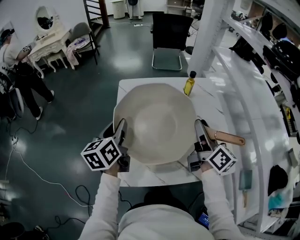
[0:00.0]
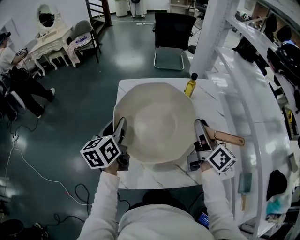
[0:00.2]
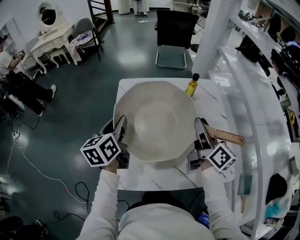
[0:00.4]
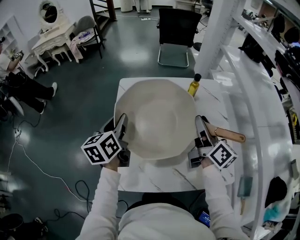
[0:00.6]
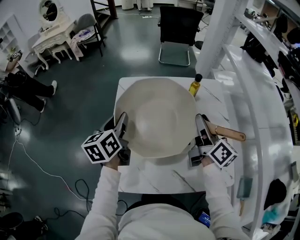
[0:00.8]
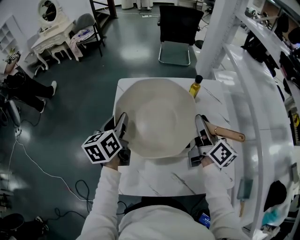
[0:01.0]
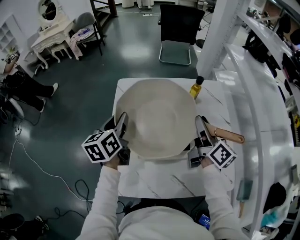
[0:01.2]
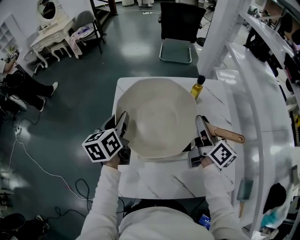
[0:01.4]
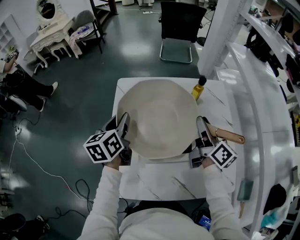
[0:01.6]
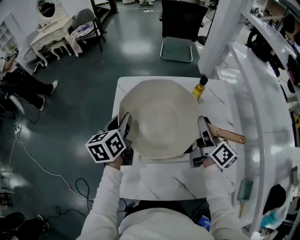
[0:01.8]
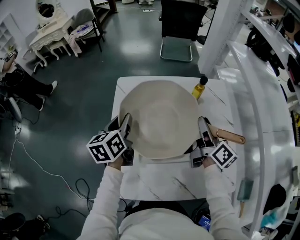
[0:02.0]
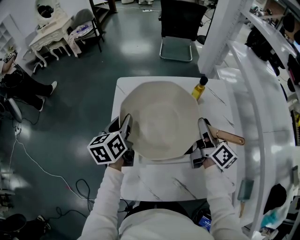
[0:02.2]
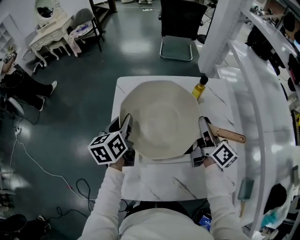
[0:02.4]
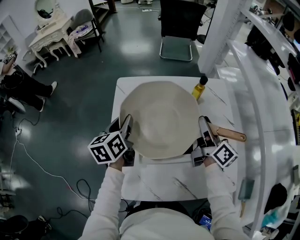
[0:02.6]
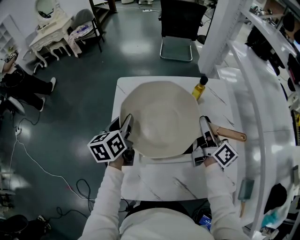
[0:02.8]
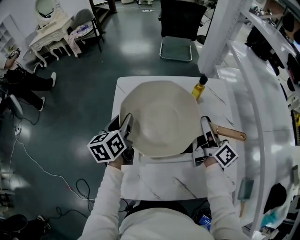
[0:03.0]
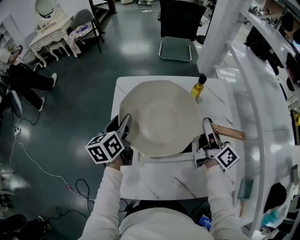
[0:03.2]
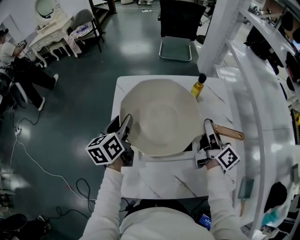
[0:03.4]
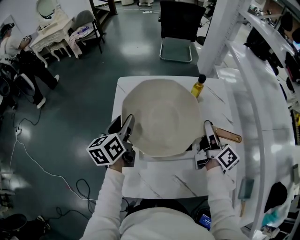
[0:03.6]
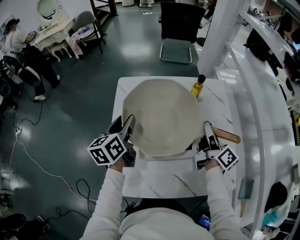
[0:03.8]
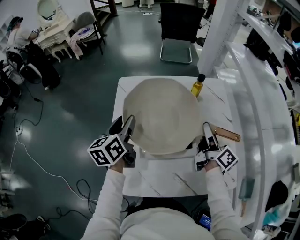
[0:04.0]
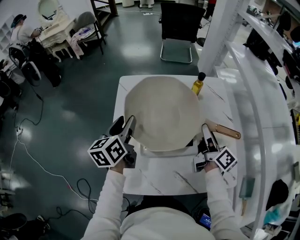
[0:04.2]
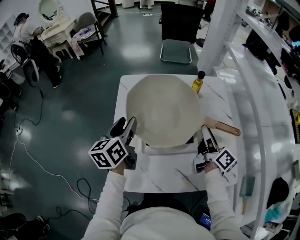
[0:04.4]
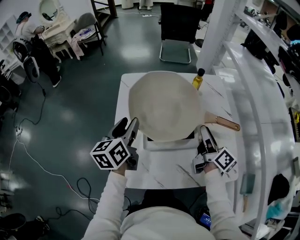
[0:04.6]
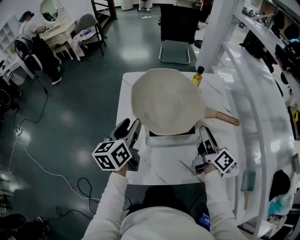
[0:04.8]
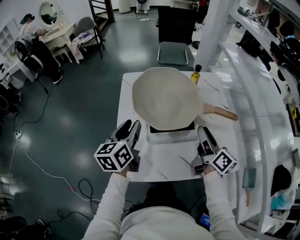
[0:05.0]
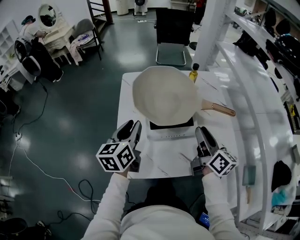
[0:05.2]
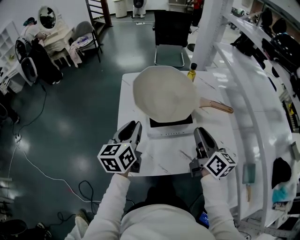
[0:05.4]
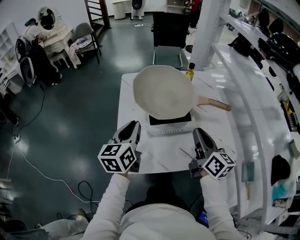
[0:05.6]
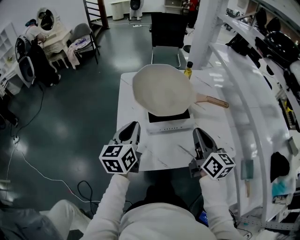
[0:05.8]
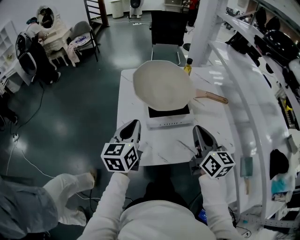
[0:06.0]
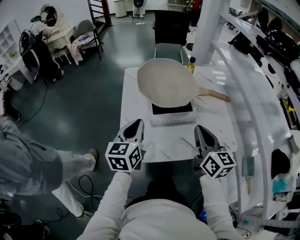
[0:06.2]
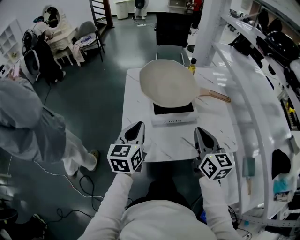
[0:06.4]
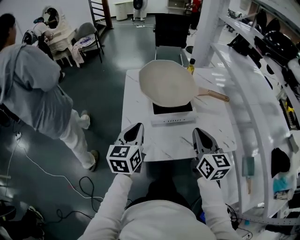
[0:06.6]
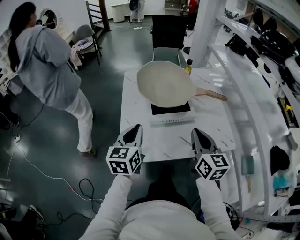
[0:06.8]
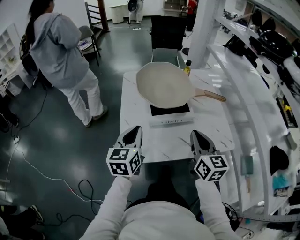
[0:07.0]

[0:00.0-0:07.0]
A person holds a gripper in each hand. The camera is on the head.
0:00.0 to 0:01.4: Both grippers travel together forward, roughly 10 cm.
0:01.4 to 0:02.8: There are only small adjustments of the grippers.
0:02.8 to 0:04.2: The right gripper moves backward, some 5 cm, while the left gripper changes place by some 5 cm.
0:04.2 to 0:05.6: The grippers both shift backward by roughly 15 cm. The right gripper swivels about 30 degrees, and closes. The left gripper closes its fingers.
0:05.6 to 0:07.0: Both grippers move backward, roughly 10 cm. The right gripper turns by about 20 degrees.

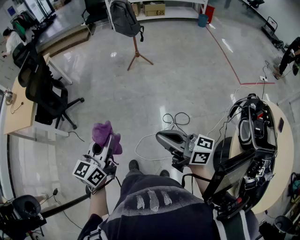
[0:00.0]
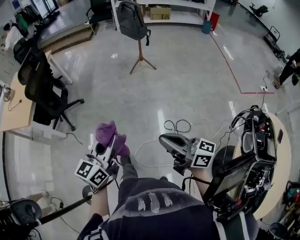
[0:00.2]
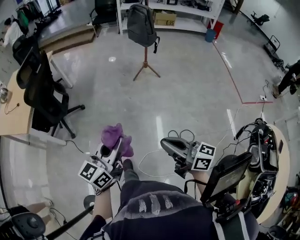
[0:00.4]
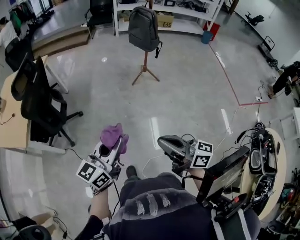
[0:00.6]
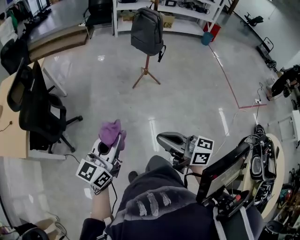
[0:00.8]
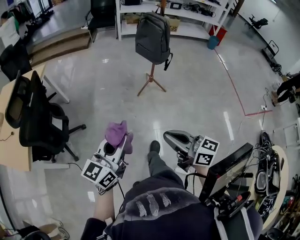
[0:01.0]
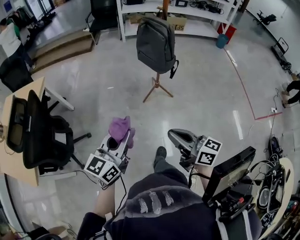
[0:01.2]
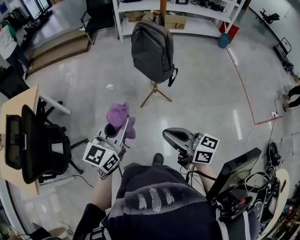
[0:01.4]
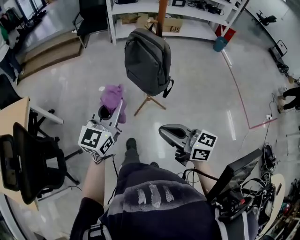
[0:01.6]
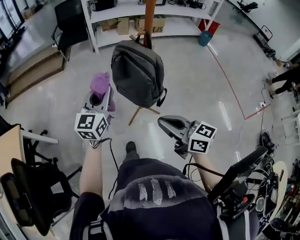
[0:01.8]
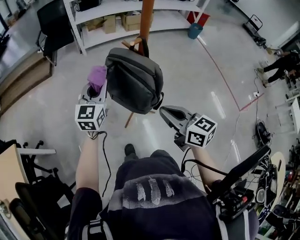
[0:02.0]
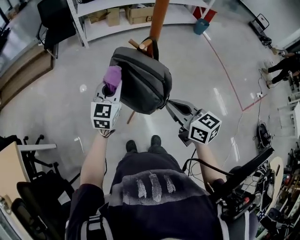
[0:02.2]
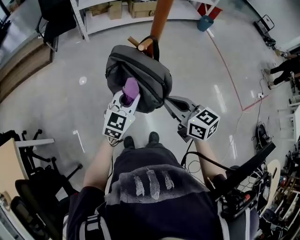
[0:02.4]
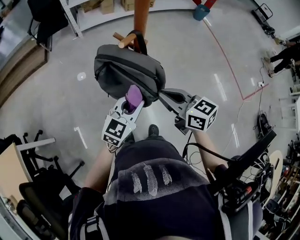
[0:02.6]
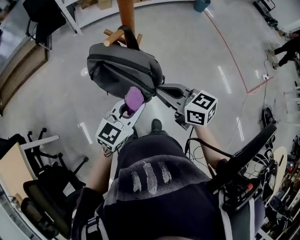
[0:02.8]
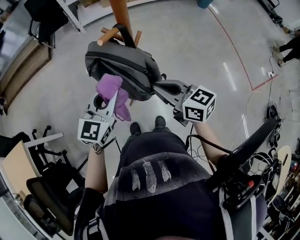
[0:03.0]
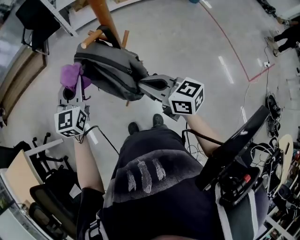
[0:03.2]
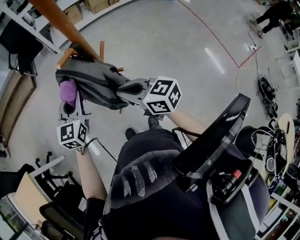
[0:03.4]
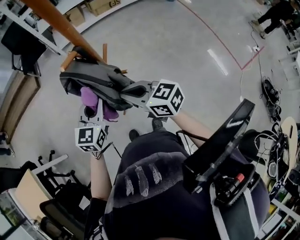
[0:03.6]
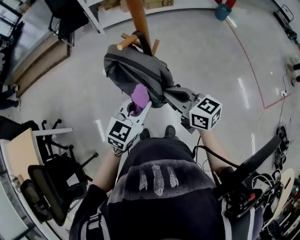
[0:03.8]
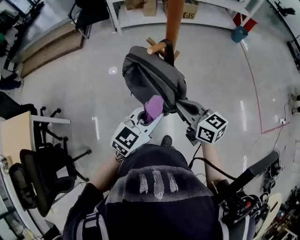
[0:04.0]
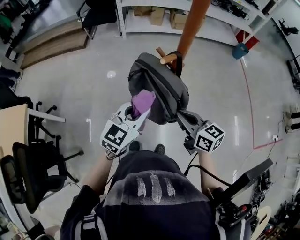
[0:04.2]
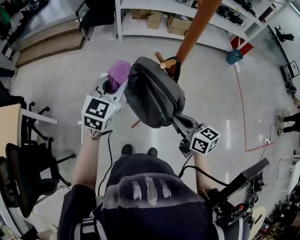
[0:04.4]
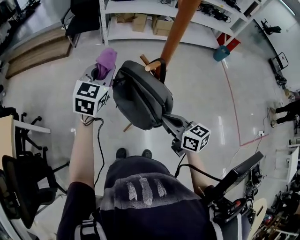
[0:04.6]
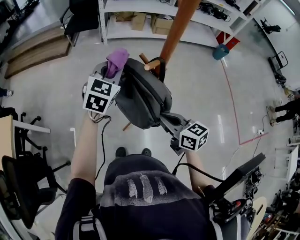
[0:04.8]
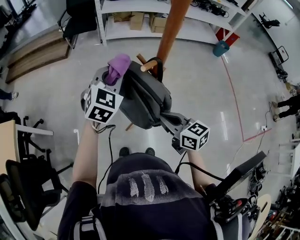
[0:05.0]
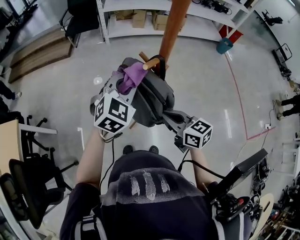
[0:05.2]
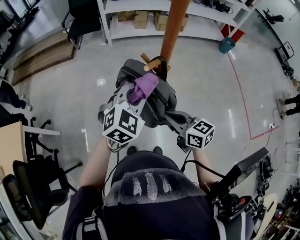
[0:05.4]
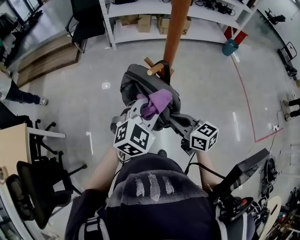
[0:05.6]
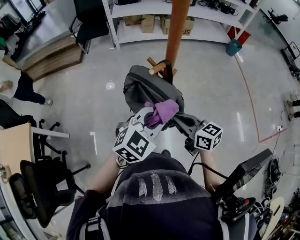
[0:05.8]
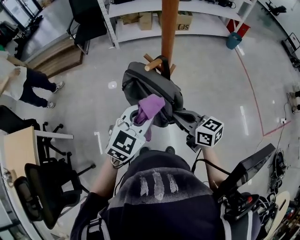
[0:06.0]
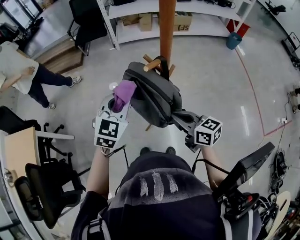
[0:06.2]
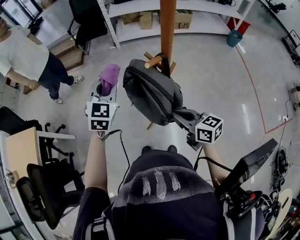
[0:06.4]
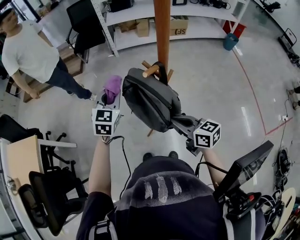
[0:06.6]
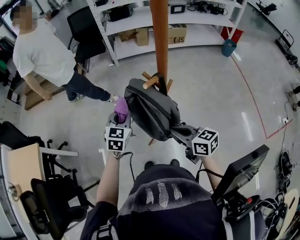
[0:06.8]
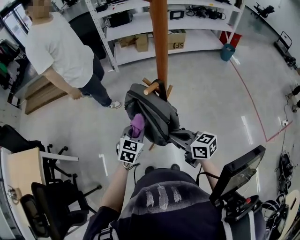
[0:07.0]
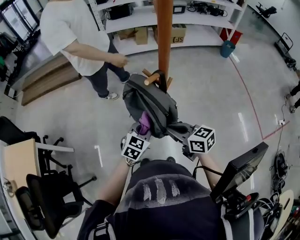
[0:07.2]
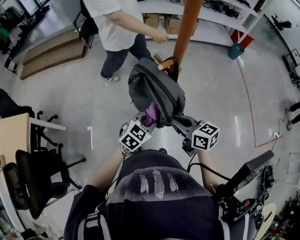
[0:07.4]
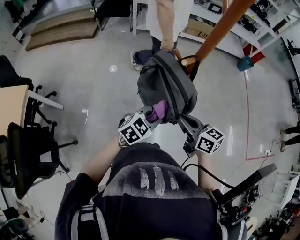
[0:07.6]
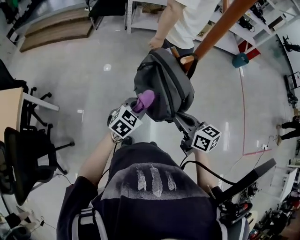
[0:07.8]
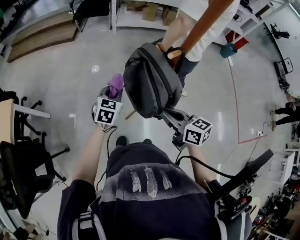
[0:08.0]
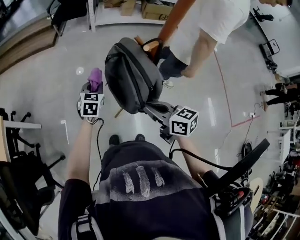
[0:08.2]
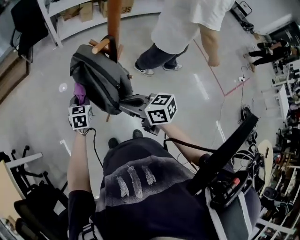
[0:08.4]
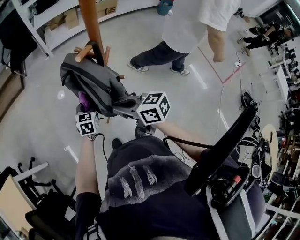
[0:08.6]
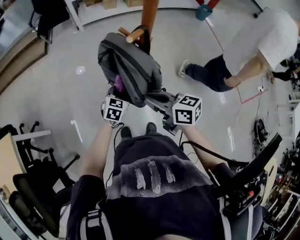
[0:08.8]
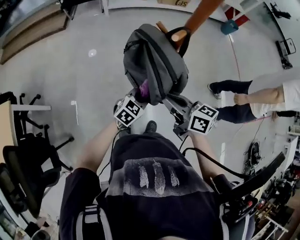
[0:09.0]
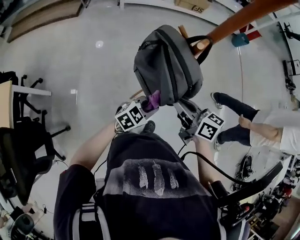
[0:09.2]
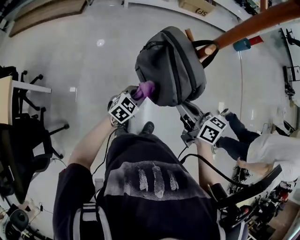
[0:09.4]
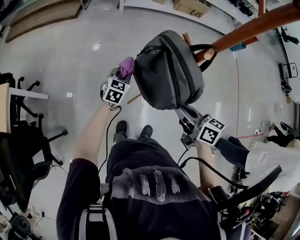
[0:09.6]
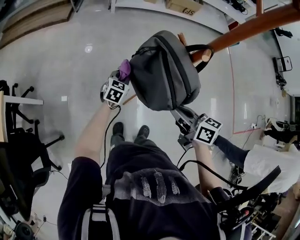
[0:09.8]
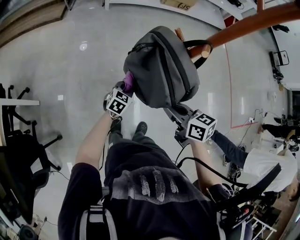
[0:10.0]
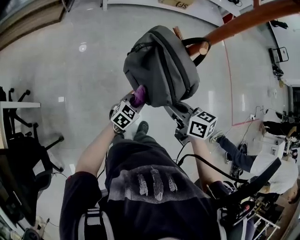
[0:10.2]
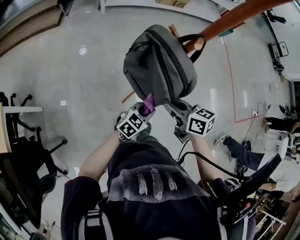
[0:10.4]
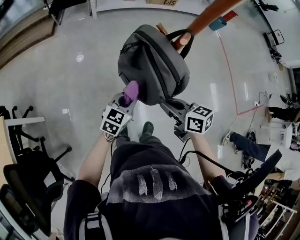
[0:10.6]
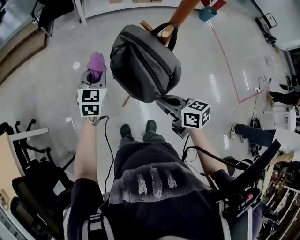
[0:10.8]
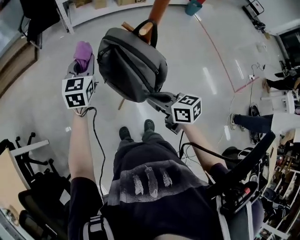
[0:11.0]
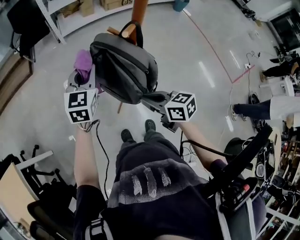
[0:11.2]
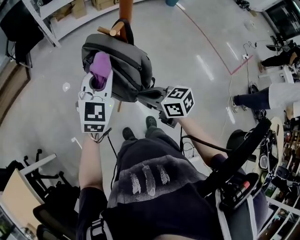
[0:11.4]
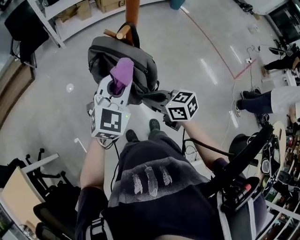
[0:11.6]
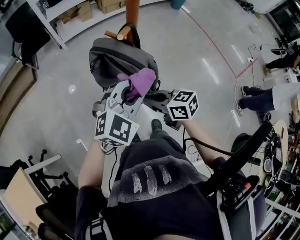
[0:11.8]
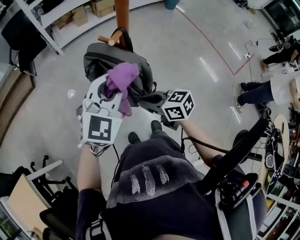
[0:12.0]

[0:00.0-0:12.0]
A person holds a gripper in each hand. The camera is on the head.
0:00.0 to 0:01.6: The pair of grippers is taken forward, some 90 cm. The left gripper rotates roughly 20 degrees.
0:01.6 to 0:03.0: The left gripper ends up roughly 25 cm from where it was. The right gripper changes place by roughly 30 cm.
0:03.0 to 0:04.4: The left gripper swings forward and backward, some 15 cm each way, with 2 reversals.
0:04.4 to 0:06.0: The left gripper moves backward and to the right, approximately 15 cm, and swivels about 20 degrees.
0:06.0 to 0:07.6: The left gripper goes approximately 15 cm downward, and goes forward and returns, approximately 15 cm each way.
0:07.6 to 0:09.0: The left gripper is displaced downward by some 10 cm, and goes forward and returns, about 15 cm each way.
0:09.0 to 0:10.4: The left gripper goes forward and backward, about 20 cm each way, reversing 2 times.
0:10.4 to 0:12.0: The left gripper moves upward, approximately 30 cm, and turns by roughly 40 degrees.

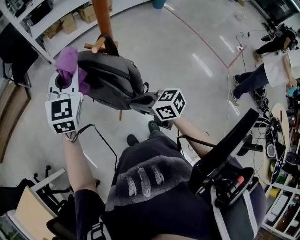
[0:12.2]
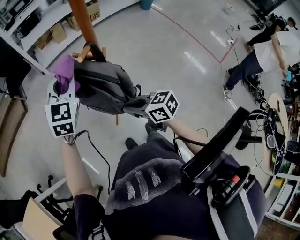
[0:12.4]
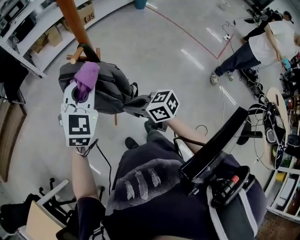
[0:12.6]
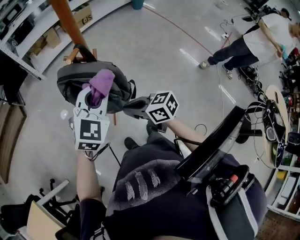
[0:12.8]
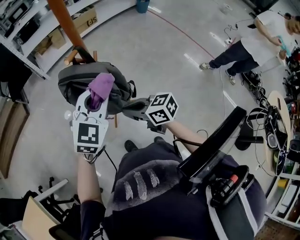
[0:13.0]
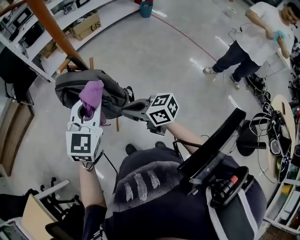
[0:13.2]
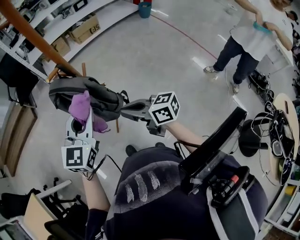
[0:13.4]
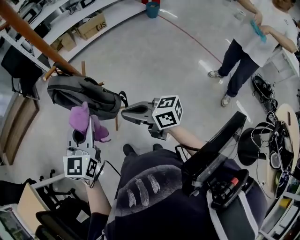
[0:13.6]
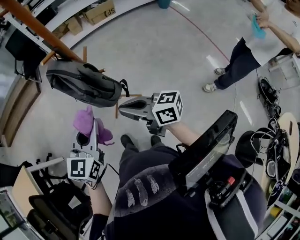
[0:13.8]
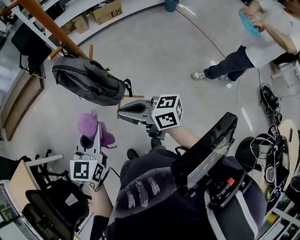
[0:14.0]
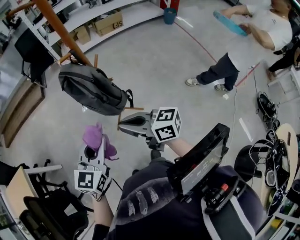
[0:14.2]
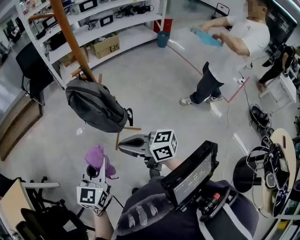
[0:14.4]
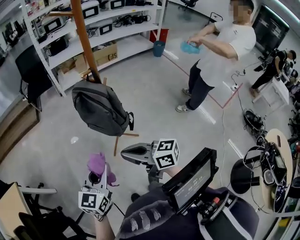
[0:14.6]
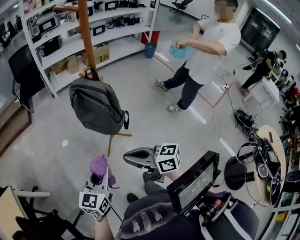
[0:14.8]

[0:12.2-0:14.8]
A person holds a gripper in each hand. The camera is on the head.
0:12.2 to 0:13.4: The right gripper shifts some 15 cm to the right, backward and upward, while the left gripper is displaced backward and to the right by some 25 cm.
0:13.4 to 0:14.8: The right gripper moves to the left and backward, about 20 cm; the left gripper goes approximately 25 cm backward, to the left and downward.

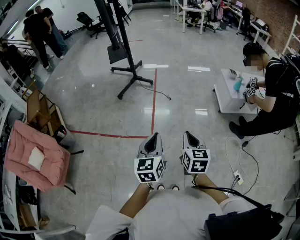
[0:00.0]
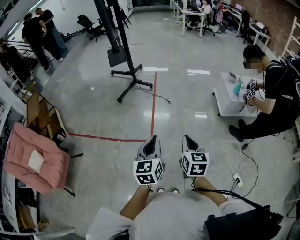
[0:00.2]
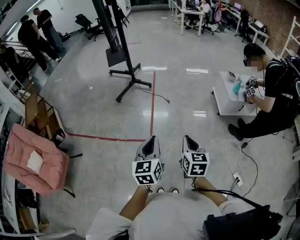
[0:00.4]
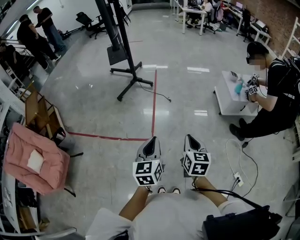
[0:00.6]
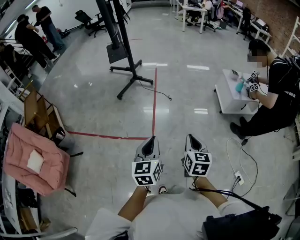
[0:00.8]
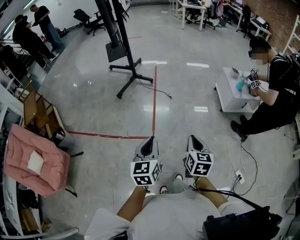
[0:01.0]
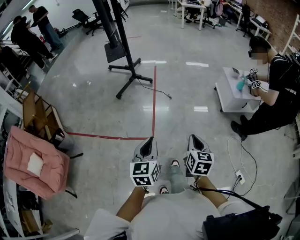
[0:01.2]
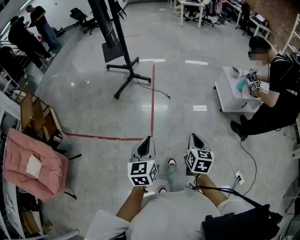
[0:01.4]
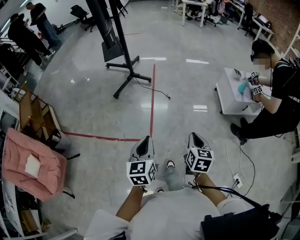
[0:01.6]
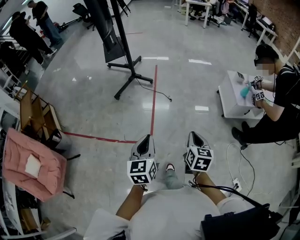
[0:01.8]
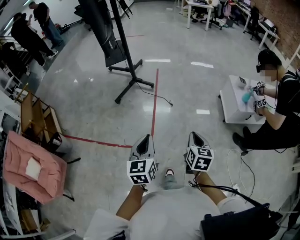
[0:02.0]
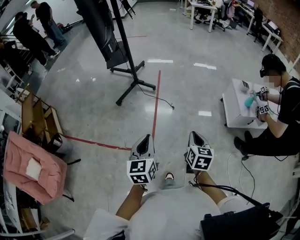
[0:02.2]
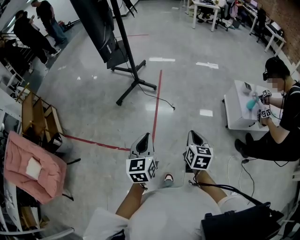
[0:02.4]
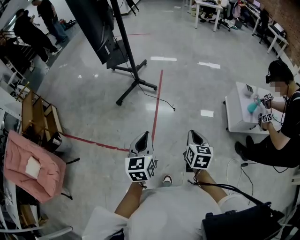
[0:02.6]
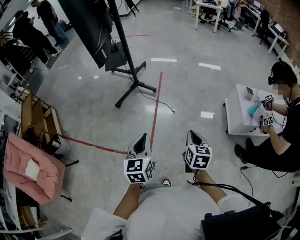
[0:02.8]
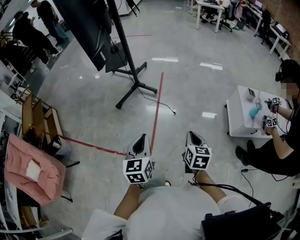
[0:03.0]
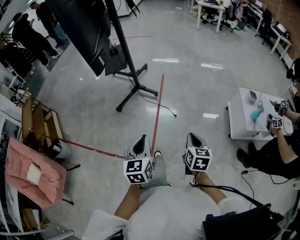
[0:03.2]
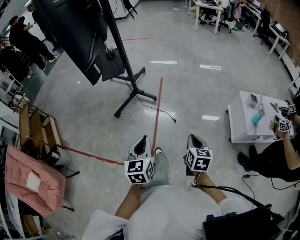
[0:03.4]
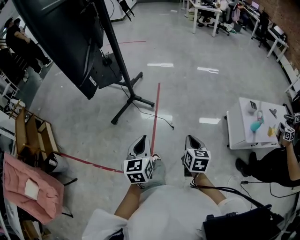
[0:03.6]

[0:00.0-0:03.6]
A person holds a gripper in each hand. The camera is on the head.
0:00.0 to 0:01.8: The two grippers go roughly 15 cm forward.
0:01.8 to 0:03.6: Both grippers travel together forward, approximately 35 cm.
